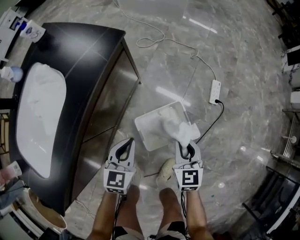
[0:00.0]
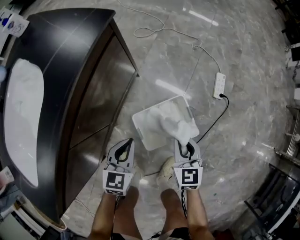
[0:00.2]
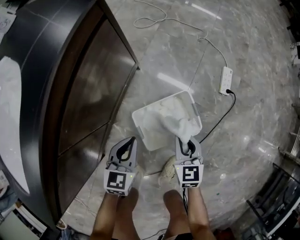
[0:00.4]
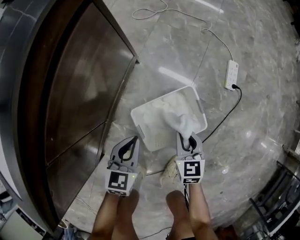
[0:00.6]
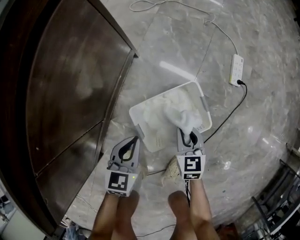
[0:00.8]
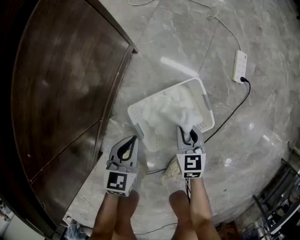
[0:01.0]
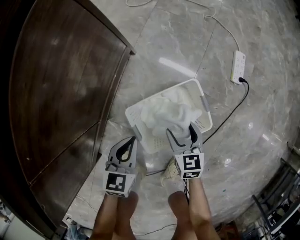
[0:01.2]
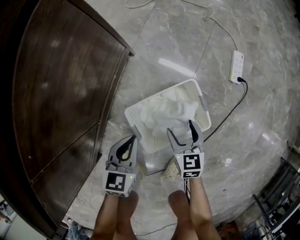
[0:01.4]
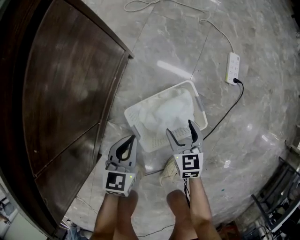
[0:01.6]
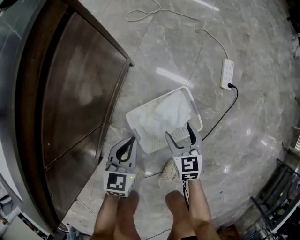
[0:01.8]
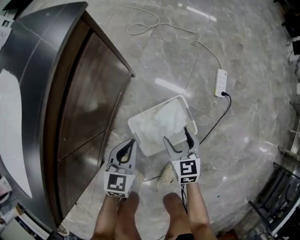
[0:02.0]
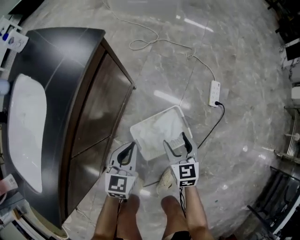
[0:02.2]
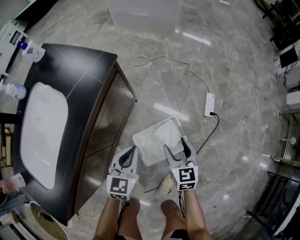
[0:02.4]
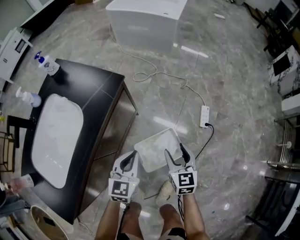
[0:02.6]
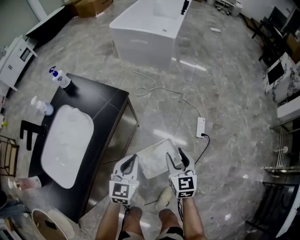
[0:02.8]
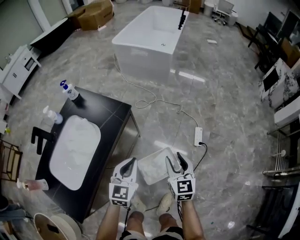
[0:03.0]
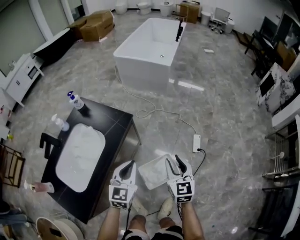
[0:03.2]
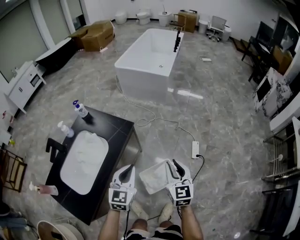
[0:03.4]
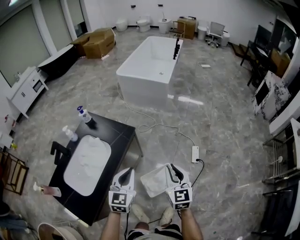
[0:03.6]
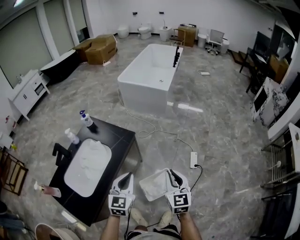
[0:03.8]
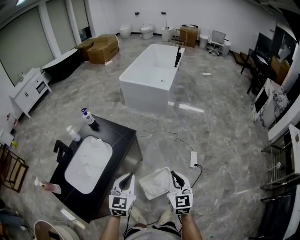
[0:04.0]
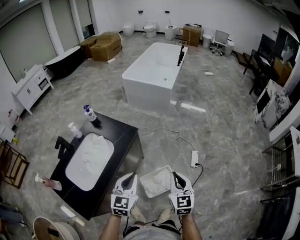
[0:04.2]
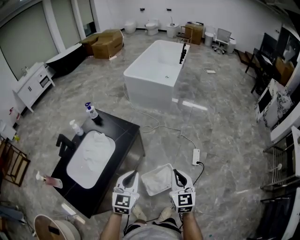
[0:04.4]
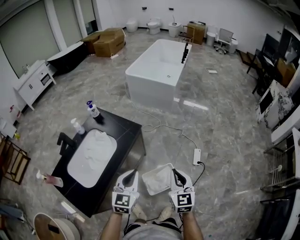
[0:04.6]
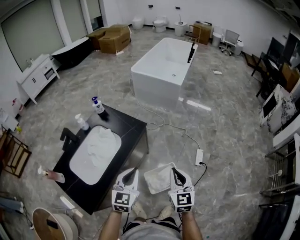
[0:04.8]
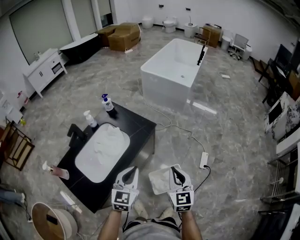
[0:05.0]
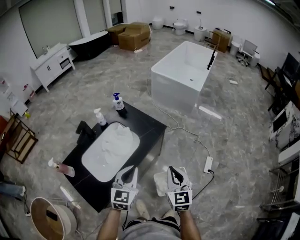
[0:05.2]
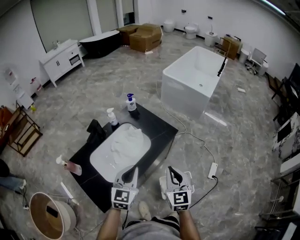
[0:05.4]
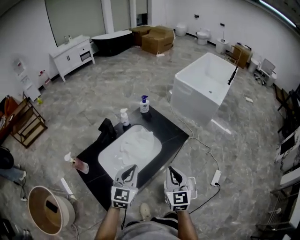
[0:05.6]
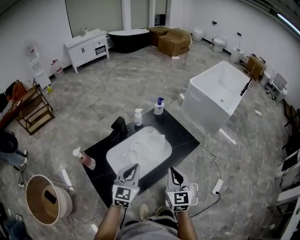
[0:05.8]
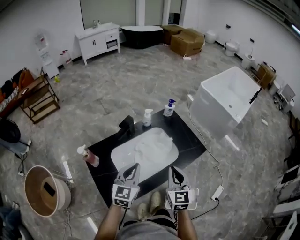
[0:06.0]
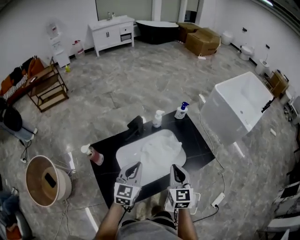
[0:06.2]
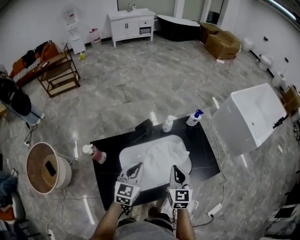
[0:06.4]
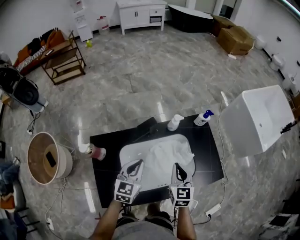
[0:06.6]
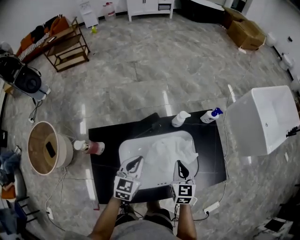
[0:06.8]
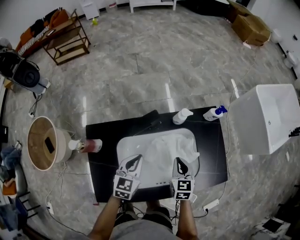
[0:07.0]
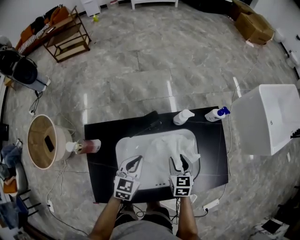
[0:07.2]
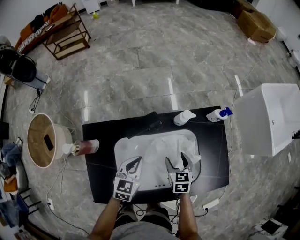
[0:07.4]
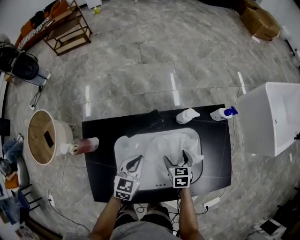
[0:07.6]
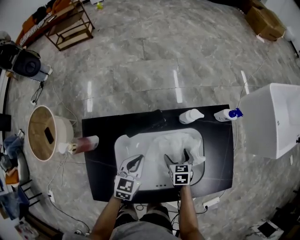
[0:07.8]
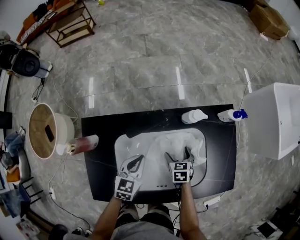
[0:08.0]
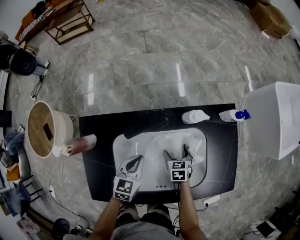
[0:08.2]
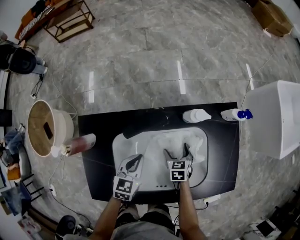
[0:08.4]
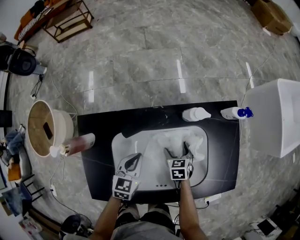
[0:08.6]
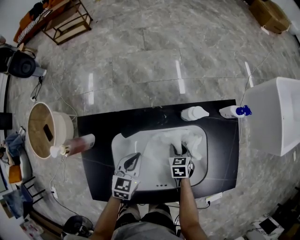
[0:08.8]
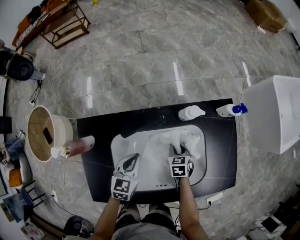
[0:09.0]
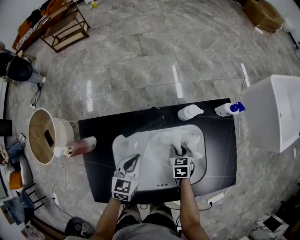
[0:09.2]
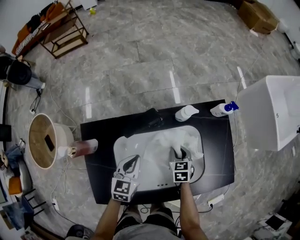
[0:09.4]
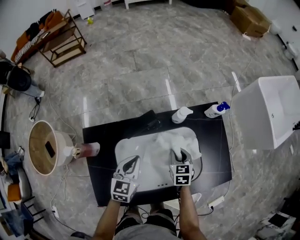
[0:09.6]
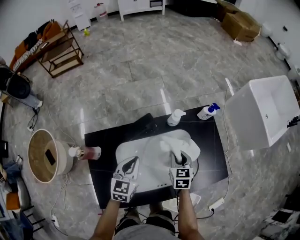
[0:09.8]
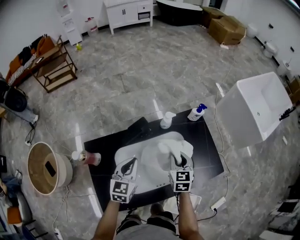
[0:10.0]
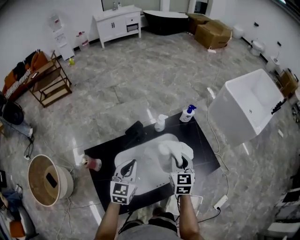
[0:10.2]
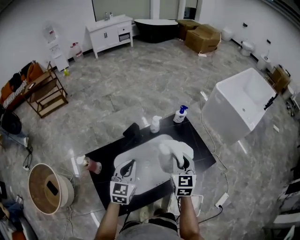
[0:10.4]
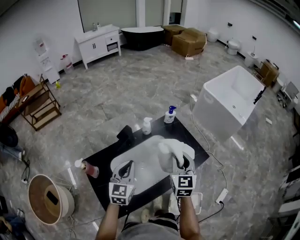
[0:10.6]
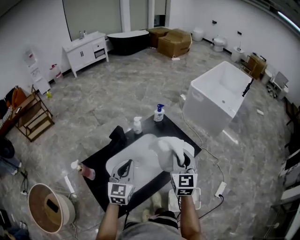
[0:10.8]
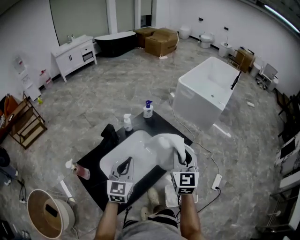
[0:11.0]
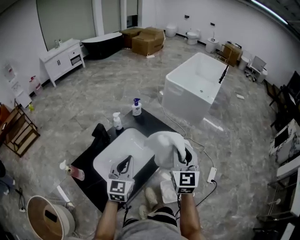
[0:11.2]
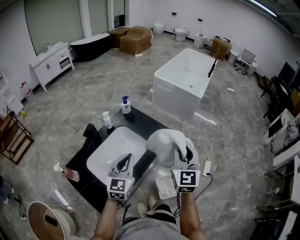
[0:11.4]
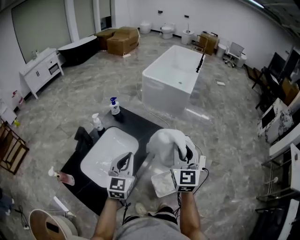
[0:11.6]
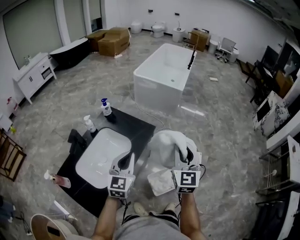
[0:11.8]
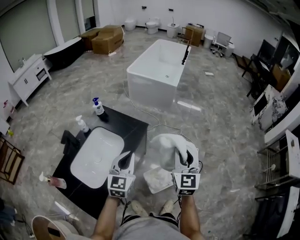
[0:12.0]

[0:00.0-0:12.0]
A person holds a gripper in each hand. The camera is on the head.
0:00.0 to 0:01.6: Both grippers travel together downward, some 25 cm. The right gripper opens.
0:01.6 to 0:03.0: The grippers both shift upward by some 50 cm. The right gripper swivels approximately 20 degrees, and closes its fingers. The left gripper turns by about 20 degrees.
0:03.0 to 0:04.4: Both grippers travel together upward and backward, roughly 20 cm. The right gripper closes its fingers.
0:04.4 to 0:06.0: The right gripper moves some 40 cm, and changes its angle by approximately 30 degrees; the left gripper ends up about 40 cm from where it was, and changes its angle by some 30 degrees.
0:06.0 to 0:07.6: The right gripper moves downward, about 30 cm, points its fingers some 40 degrees further downward, and opens. Meanwhile the left gripper shifts about 20 cm downward, and swivels about 30 degrees.
0:07.6 to 0:09.0: The right gripper is displaced downward by some 5 cm, and closes its fingers.
0:09.0 to 0:10.4: The right gripper goes approximately 35 cm upward, and tips its fingers upward by approximately 40 degrees; the left gripper heads upward, covering approximately 25 cm, and turns by some 30 degrees.
0:10.4 to 0:12.0: The left gripper shifts by roughly 35 cm, and turns by roughly 40 degrees, while the right gripper ends up approximately 40 cm from where it was, and turns by about 40 degrees.

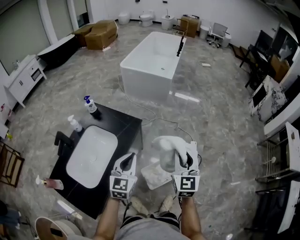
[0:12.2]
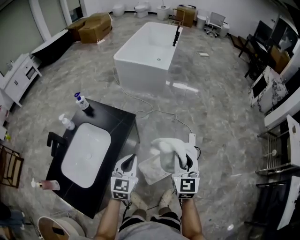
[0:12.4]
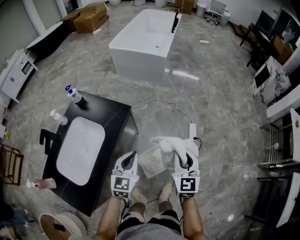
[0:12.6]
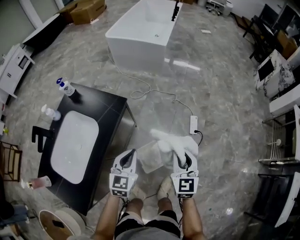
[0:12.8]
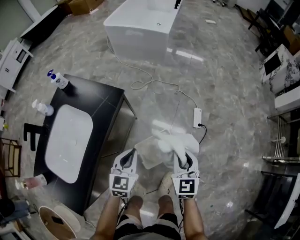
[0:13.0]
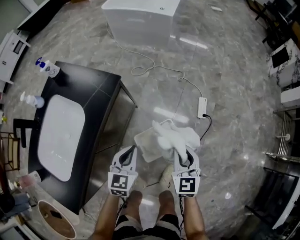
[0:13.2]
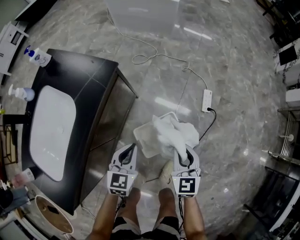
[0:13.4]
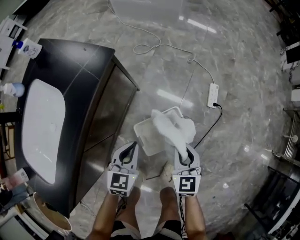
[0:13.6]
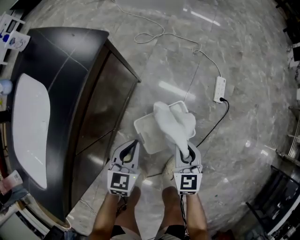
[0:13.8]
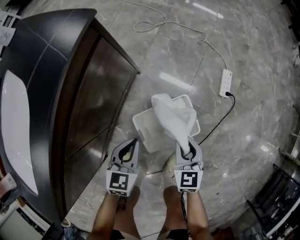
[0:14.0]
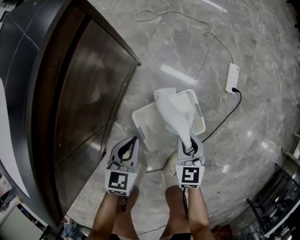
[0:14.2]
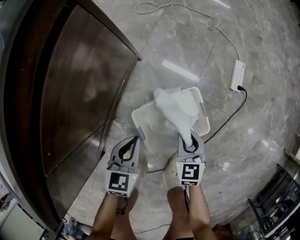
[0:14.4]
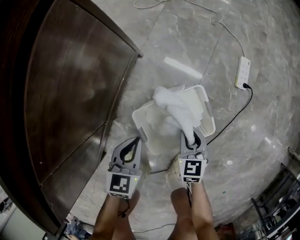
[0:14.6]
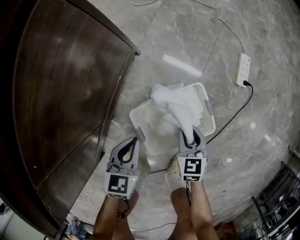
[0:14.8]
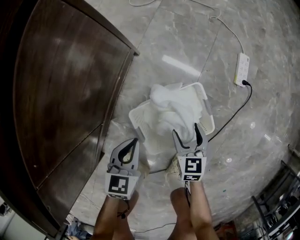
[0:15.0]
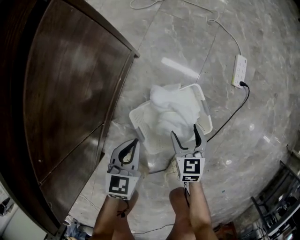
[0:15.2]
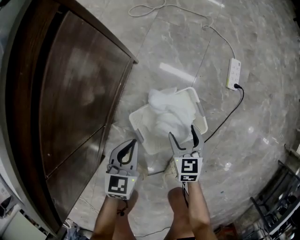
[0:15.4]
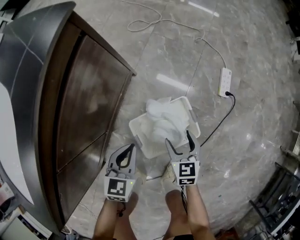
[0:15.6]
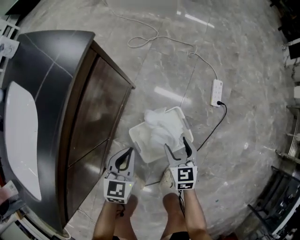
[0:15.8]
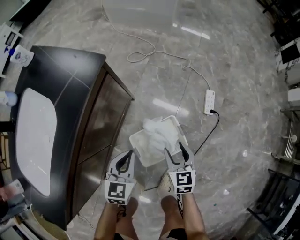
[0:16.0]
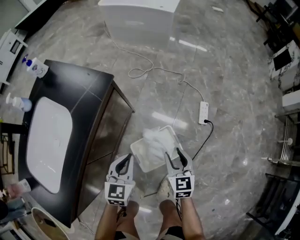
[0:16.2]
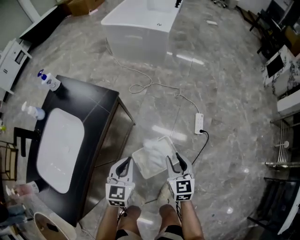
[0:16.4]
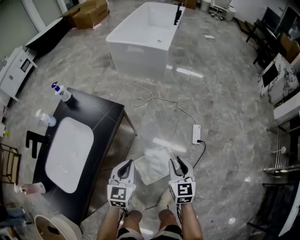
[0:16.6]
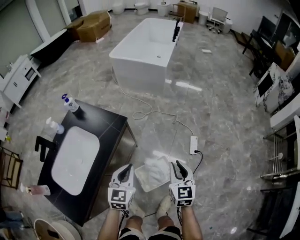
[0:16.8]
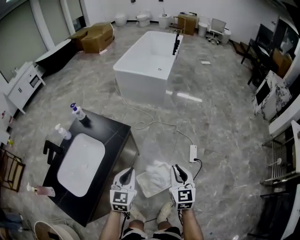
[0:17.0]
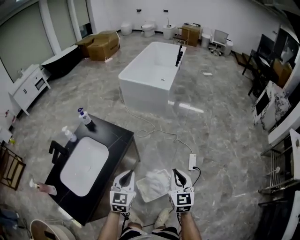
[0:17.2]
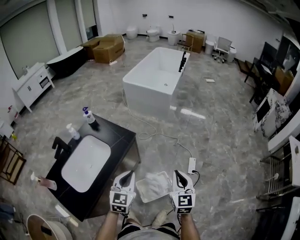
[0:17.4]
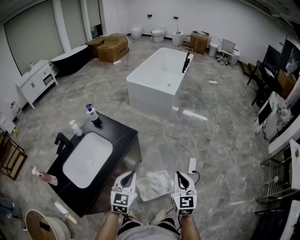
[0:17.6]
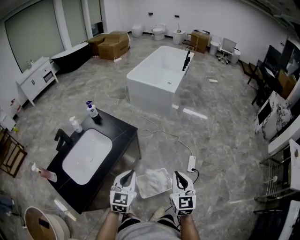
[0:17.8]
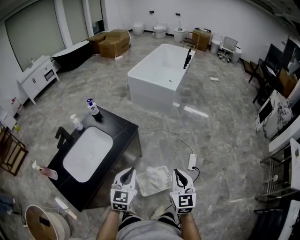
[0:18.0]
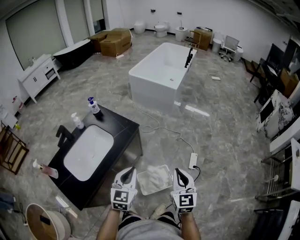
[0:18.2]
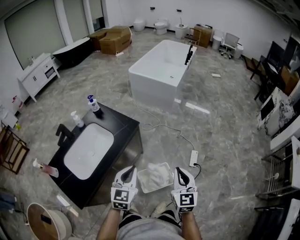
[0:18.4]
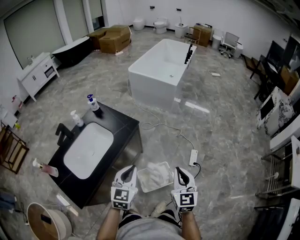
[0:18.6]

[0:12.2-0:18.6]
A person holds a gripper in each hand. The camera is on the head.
0:12.2 to 0:13.8: Both grippers travel together downward, some 50 cm. The right gripper turns by some 30 degrees; the left gripper changes its angle by approximately 20 degrees.
0:13.8 to 0:15.4: The grippers both shift downward by approximately 20 cm. The right gripper opens up.
0:15.4 to 0:17.0: The grippers both shift upward by roughly 60 cm. The right gripper turns by some 30 degrees, and closes its fingers. The left gripper rotates about 20 degrees.
0:17.0 to 0:18.6: The grippers both shift backward and upward by some 10 cm.

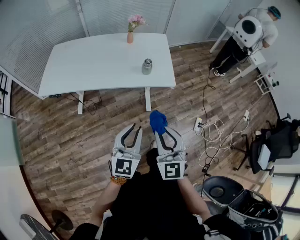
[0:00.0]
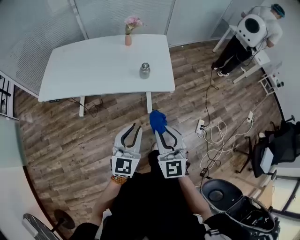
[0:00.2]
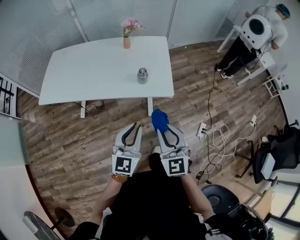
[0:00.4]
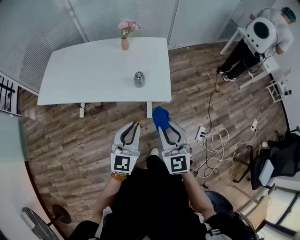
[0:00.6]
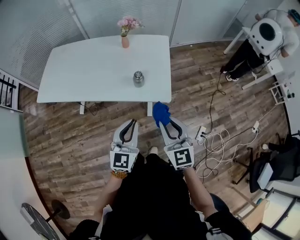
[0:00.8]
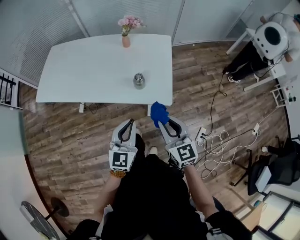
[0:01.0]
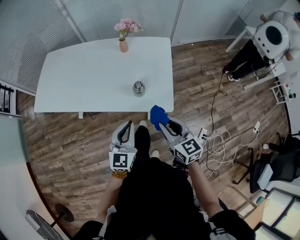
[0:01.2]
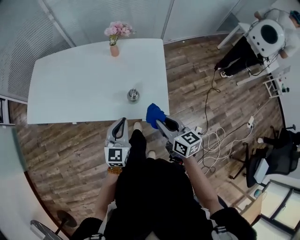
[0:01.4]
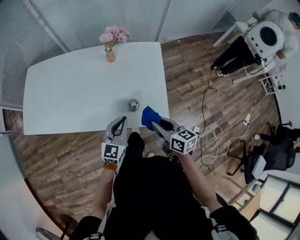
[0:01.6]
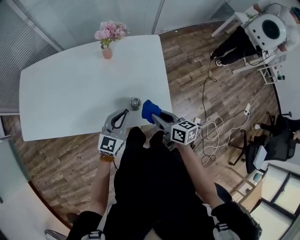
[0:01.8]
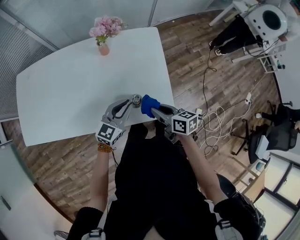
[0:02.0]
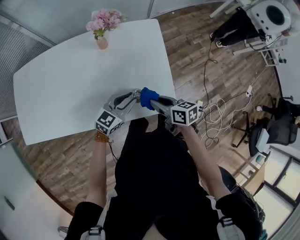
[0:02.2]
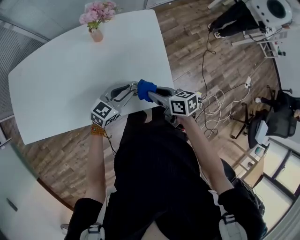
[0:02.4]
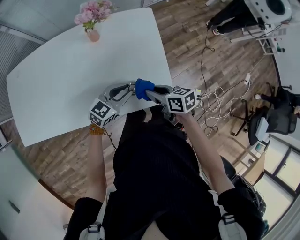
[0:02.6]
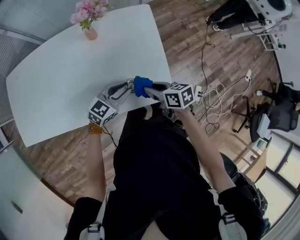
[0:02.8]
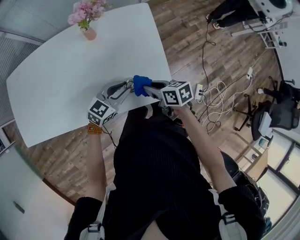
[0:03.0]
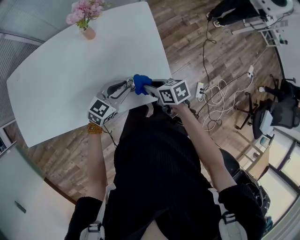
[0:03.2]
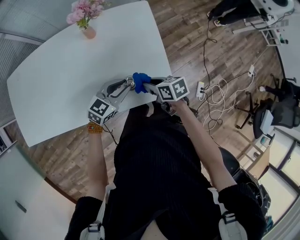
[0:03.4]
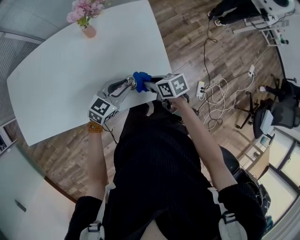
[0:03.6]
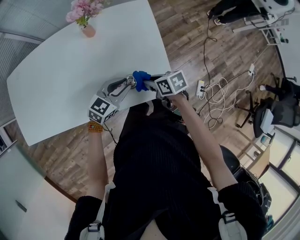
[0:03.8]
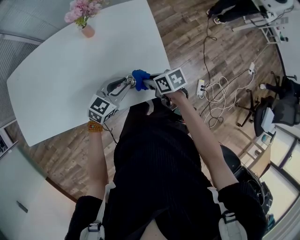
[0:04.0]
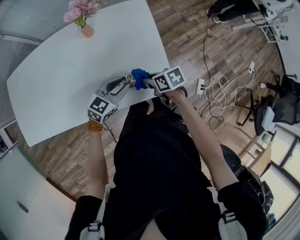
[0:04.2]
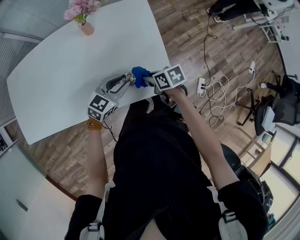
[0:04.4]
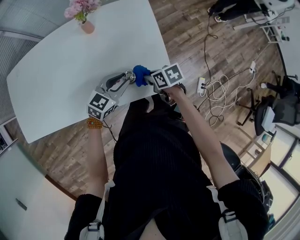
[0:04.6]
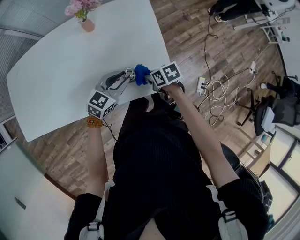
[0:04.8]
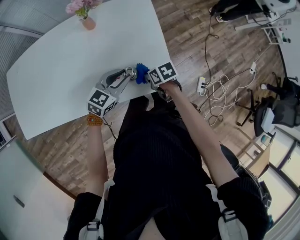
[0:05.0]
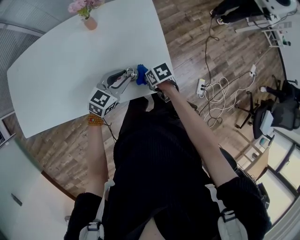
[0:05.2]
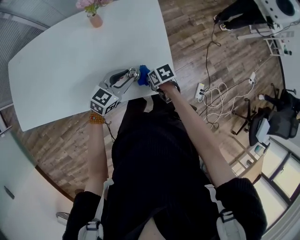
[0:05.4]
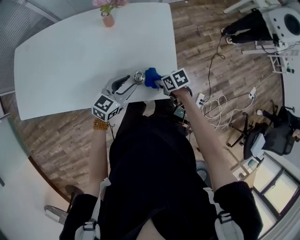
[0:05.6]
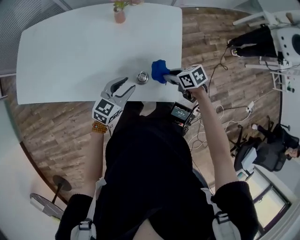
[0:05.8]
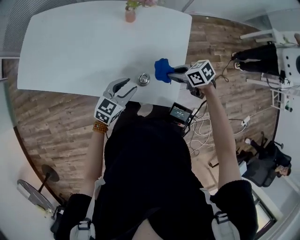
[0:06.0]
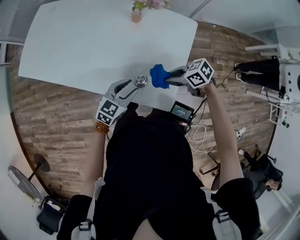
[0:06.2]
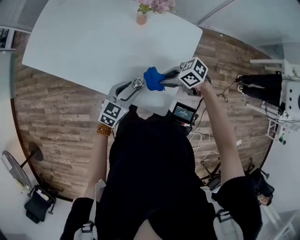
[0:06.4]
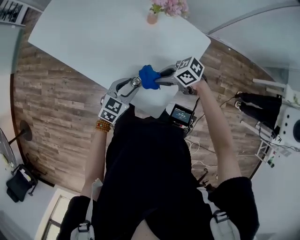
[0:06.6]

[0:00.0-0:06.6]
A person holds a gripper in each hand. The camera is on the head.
0:00.0 to 0:01.6: The two grippers go some 35 cm forward. The right gripper rotates around the line of its fingers by approximately 50 degrees, clockwise from behind.
0:01.6 to 0:03.2: Both grippers move downward and forward, some 15 cm. The right gripper swivels approximately 20 degrees. The left gripper rotates about 40 degrees.
0:03.2 to 0:05.0: The right gripper moves downward, some 10 cm.
0:05.0 to 0:06.6: The right gripper is displaced upward by approximately 10 cm, and rotates roughly 80 degrees, while the left gripper rotates roughly 50 degrees.
